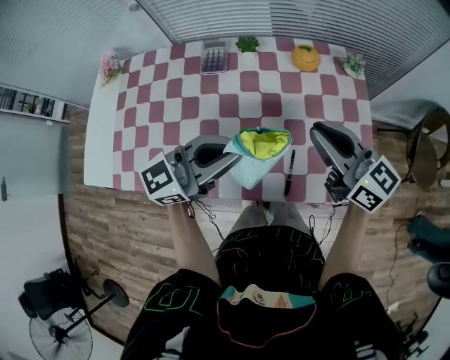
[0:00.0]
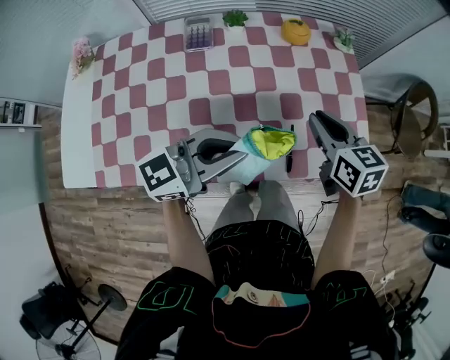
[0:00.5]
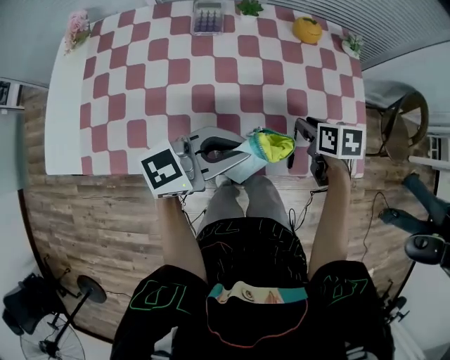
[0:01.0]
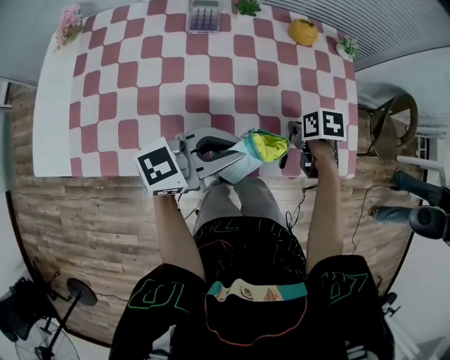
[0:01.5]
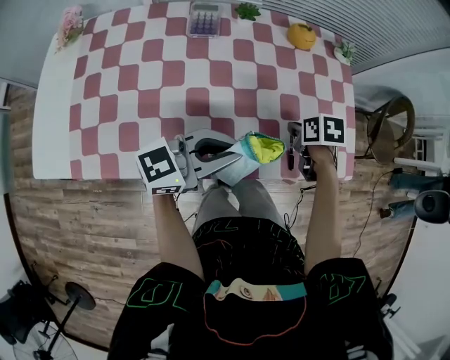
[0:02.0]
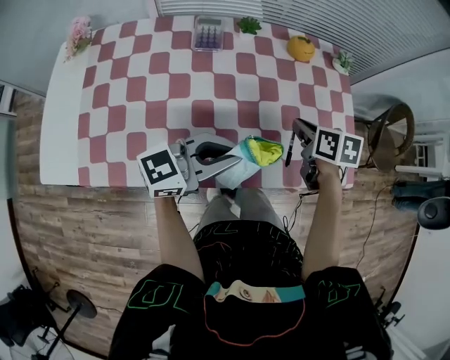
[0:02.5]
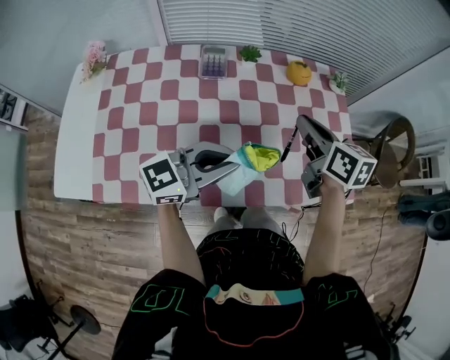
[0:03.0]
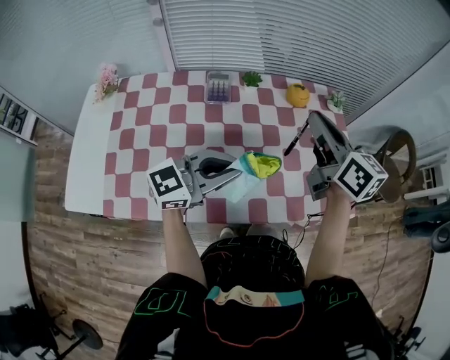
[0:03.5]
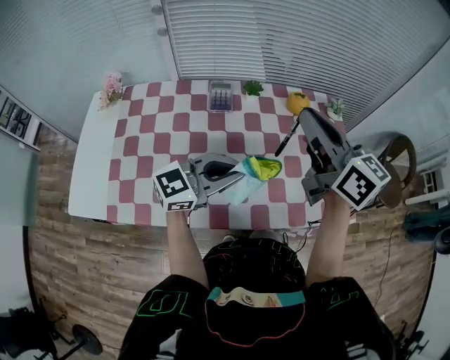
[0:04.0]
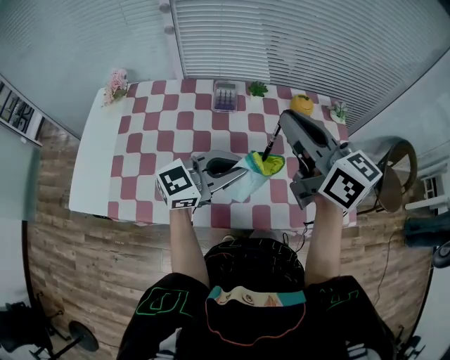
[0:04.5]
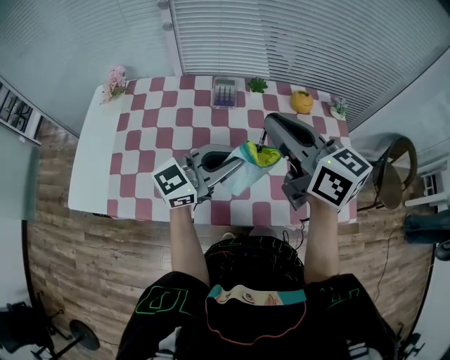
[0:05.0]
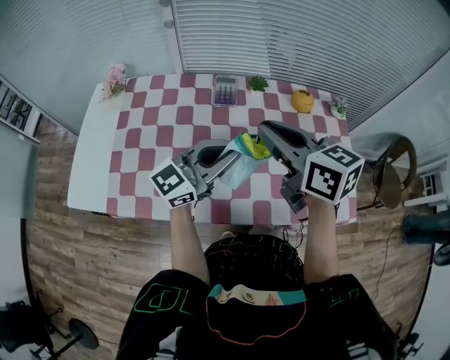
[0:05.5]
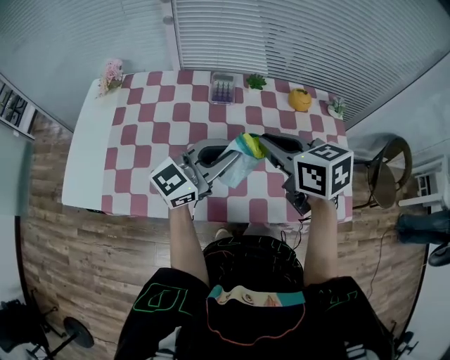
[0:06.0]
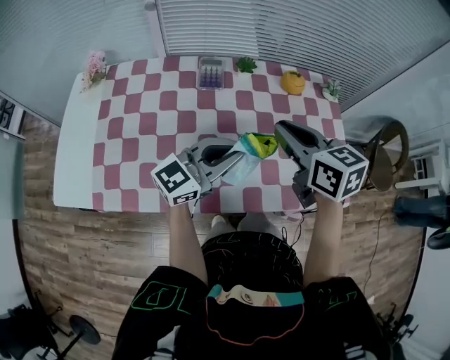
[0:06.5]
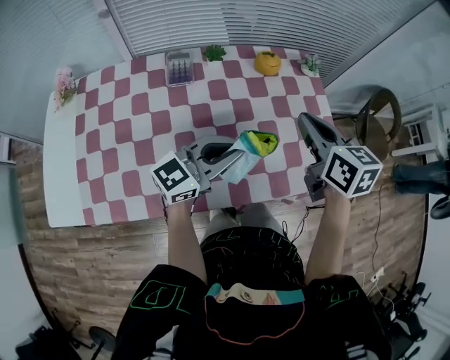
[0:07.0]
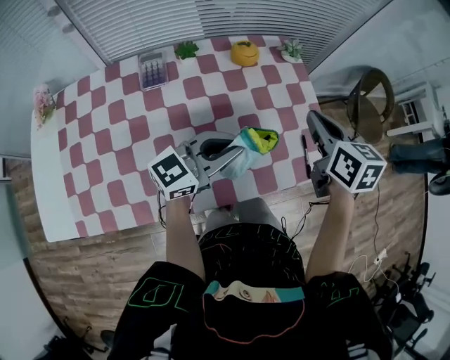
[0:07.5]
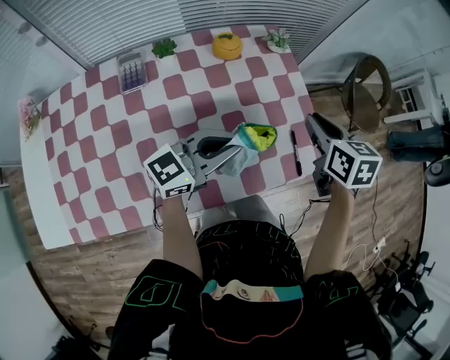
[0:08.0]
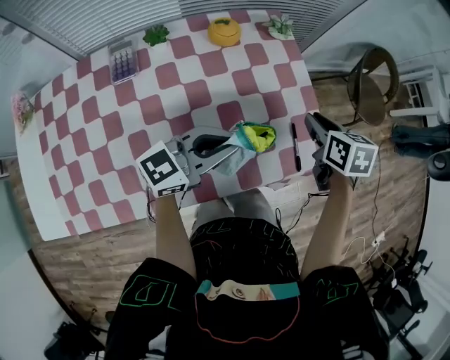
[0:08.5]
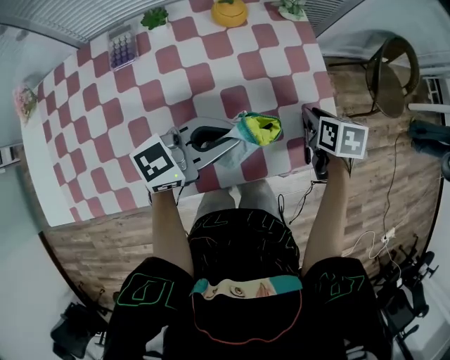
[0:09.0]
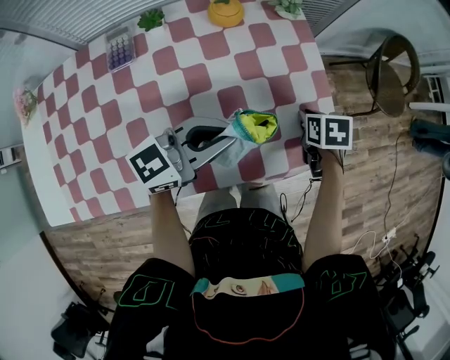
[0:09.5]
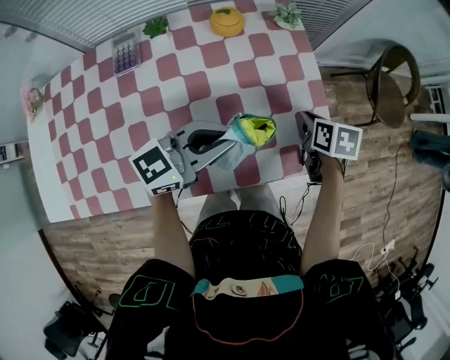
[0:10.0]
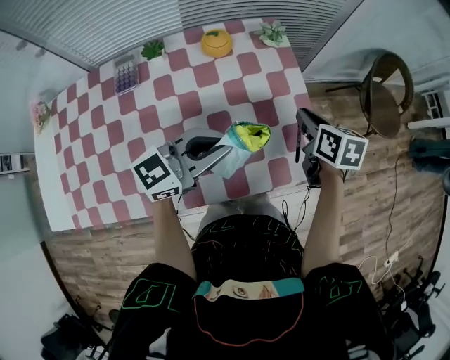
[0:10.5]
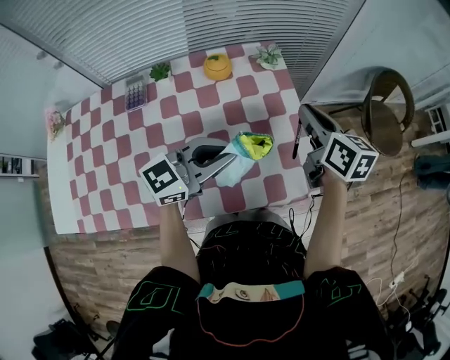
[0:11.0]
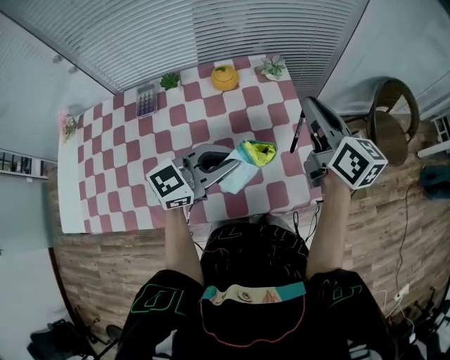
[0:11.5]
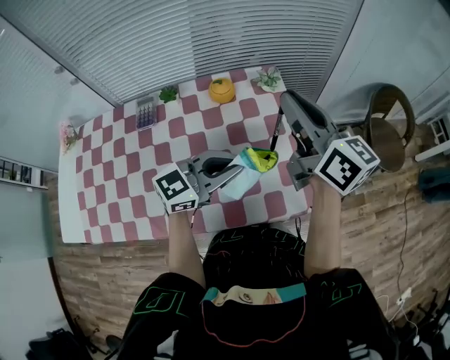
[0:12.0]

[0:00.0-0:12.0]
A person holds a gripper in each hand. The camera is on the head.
0:00.0 to 0:02.0: The left gripper travels downward and backward by some 10 cm; the right gripper goes approximately 25 cm downward, angles its fingers downward, by roughly 70 degrees, and opens, then closes again.
0:02.0 to 0:04.0: The right gripper travels upward by roughly 35 cm, and tilts its fingers approximately 70 degrees upward. The left gripper shifts roughly 5 cm upward.
0:04.0 to 0:06.0: The right gripper goes some 15 cm downward and to the left, and tips its fingers downward by some 30 degrees.
0:06.0 to 0:08.0: The right gripper ends up approximately 35 cm from where it was, and swivels some 40 degrees, while the left gripper changes place by about 20 cm, and changes its angle by about 30 degrees.
0:08.0 to 0:10.0: The right gripper heads downward, covering approximately 15 cm, and swivels roughly 20 degrees.
0:10.0 to 0:12.0: The left gripper shifts about 5 cm to the right. Meanwhile the right gripper shifts roughly 30 cm upward, and tips its fingers upward by about 60 degrees.

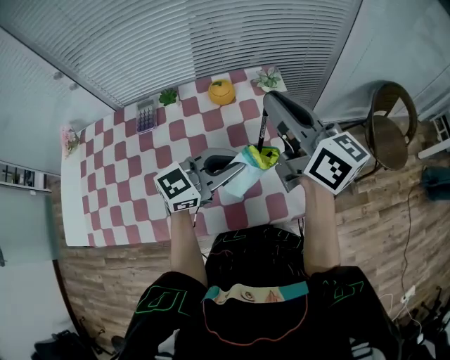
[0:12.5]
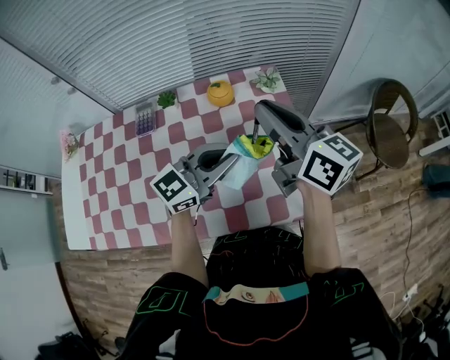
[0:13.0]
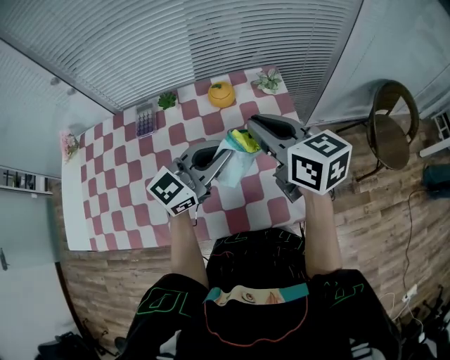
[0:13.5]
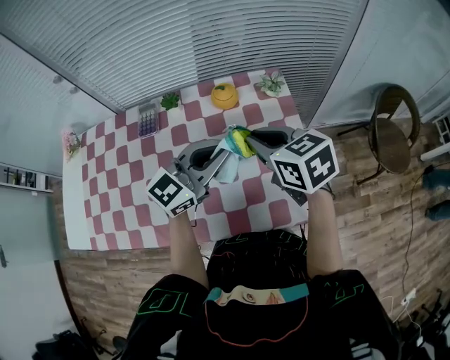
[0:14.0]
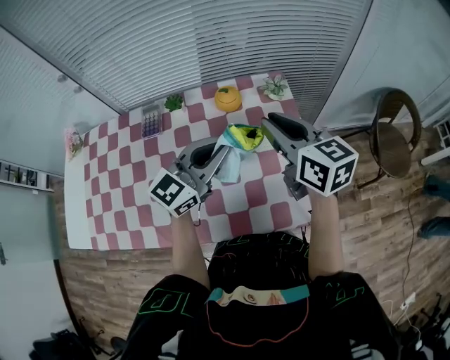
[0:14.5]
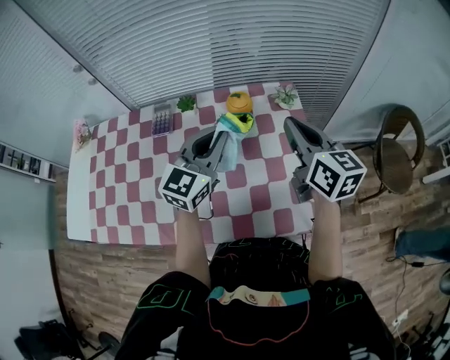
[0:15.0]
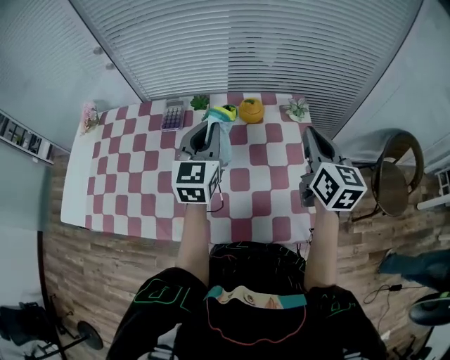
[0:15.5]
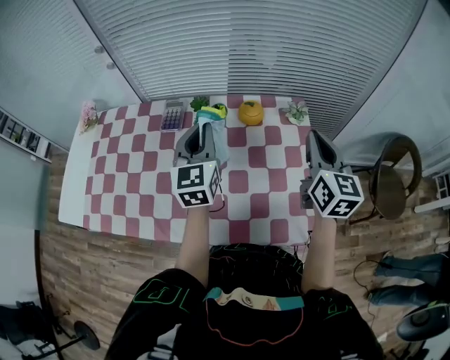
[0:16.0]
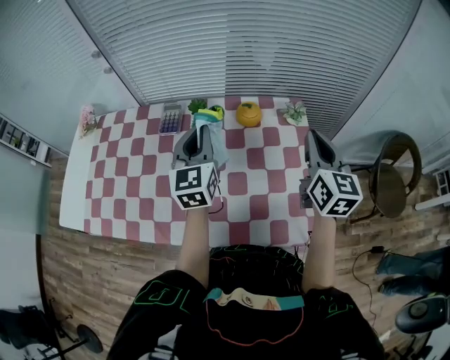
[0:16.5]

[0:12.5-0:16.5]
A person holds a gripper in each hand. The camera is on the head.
0:12.5 to 0:14.5: The right gripper moves downward, approximately 5 cm, and rotates some 20 degrees; the left gripper moves to the left and forward, some 10 cm, and rotates roughly 20 degrees.
0:14.5 to 0:16.5: The right gripper heads to the right, covering approximately 5 cm, and rotates roughly 20 degrees. The left gripper travels to the left and forward by about 15 cm, and rotates roughly 50 degrees.

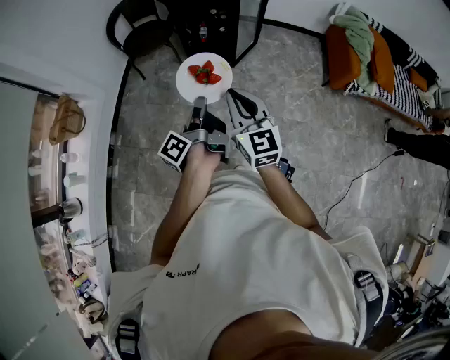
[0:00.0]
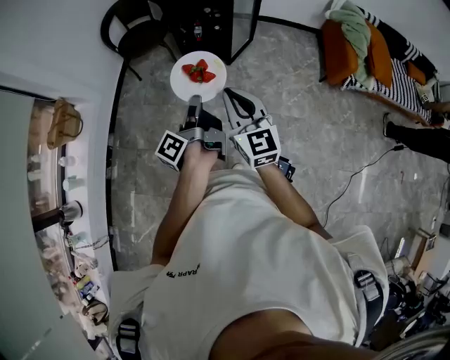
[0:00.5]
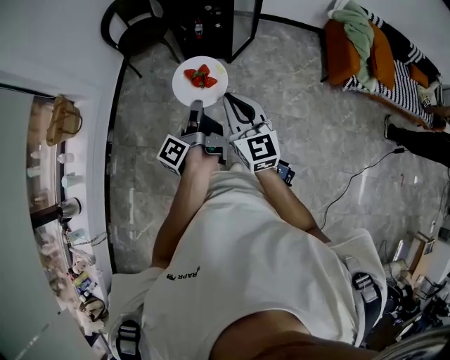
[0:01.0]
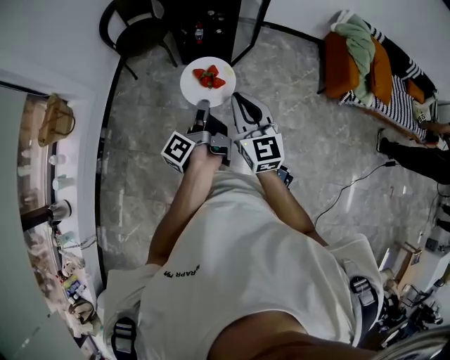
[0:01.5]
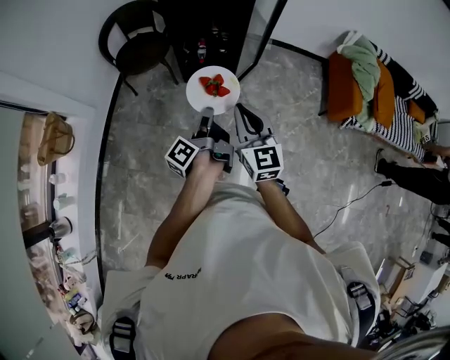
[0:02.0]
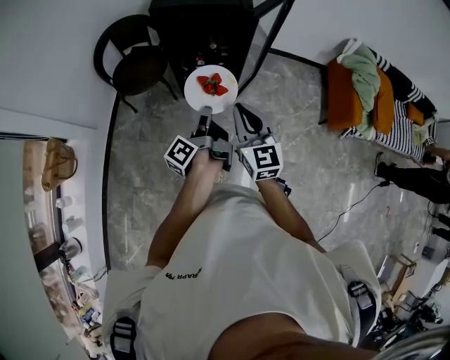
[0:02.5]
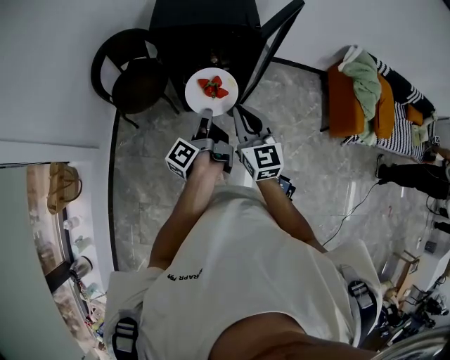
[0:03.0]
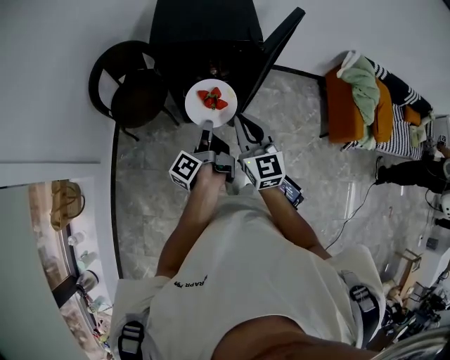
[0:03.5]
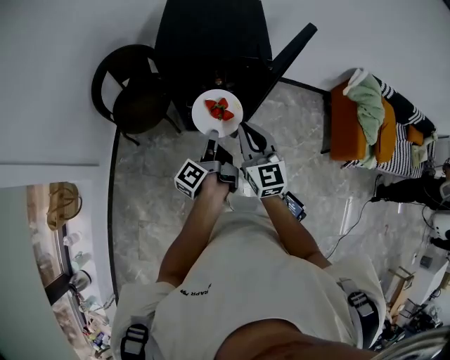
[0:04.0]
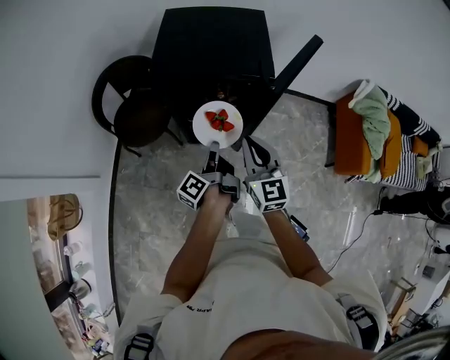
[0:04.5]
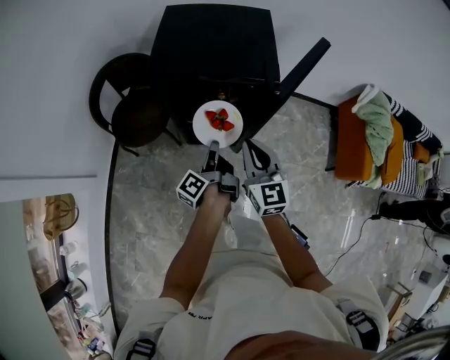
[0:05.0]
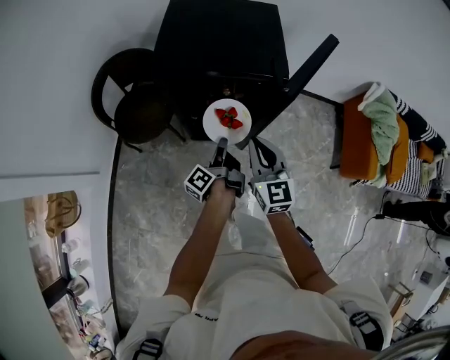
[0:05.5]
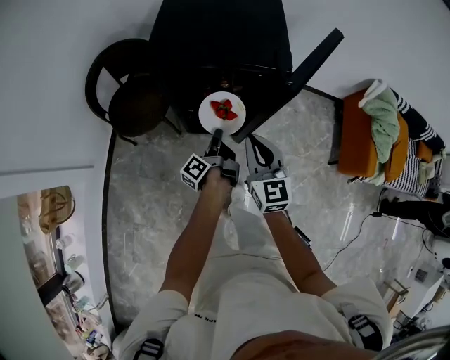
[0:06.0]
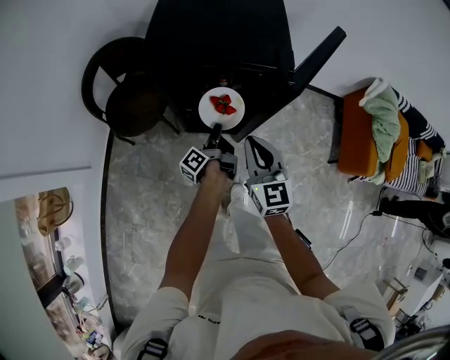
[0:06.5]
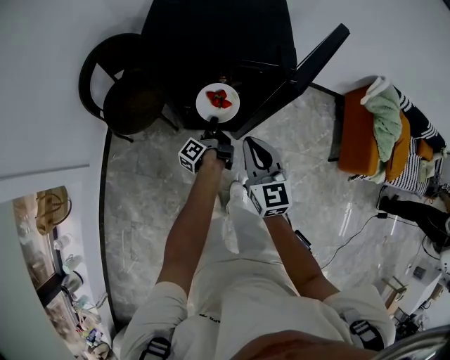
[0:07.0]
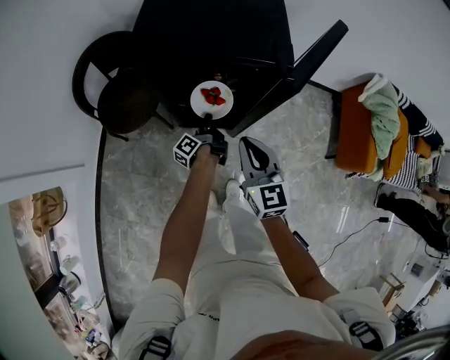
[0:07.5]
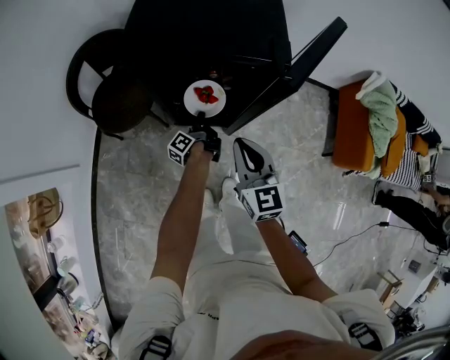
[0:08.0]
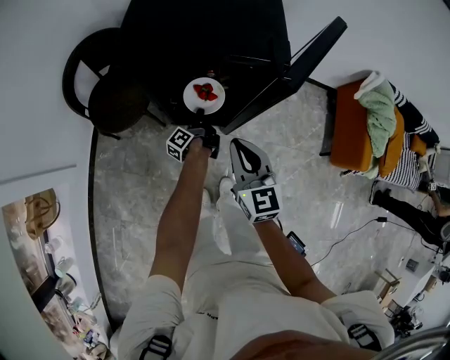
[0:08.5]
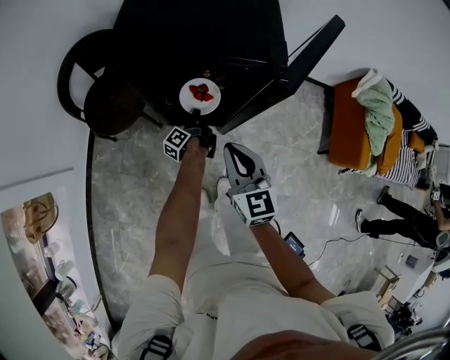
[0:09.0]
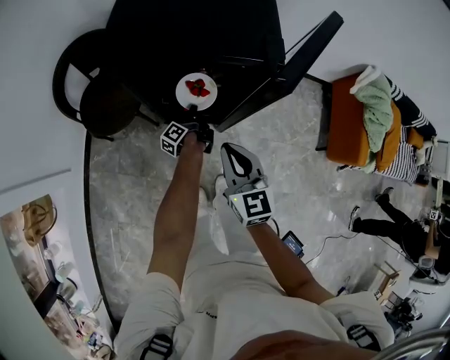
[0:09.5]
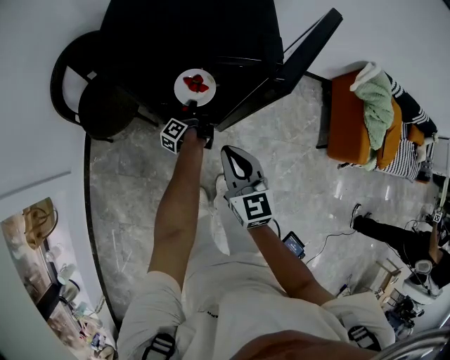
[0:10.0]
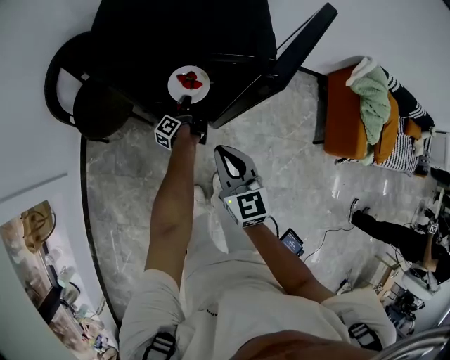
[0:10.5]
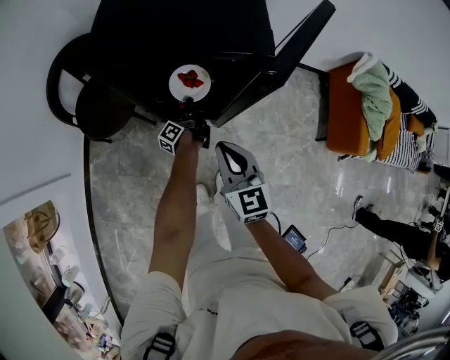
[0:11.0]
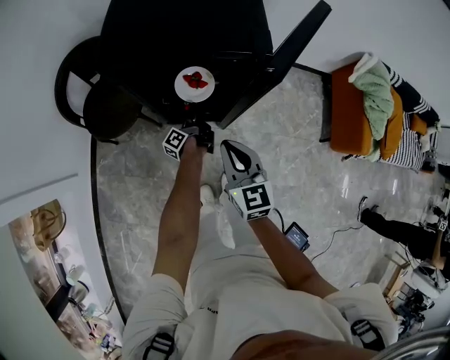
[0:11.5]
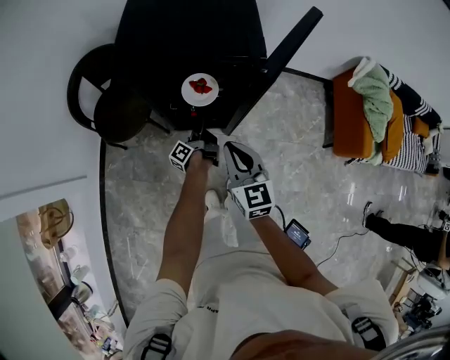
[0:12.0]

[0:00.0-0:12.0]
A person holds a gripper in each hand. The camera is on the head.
0:00.0 to 0:02.0: The right gripper changes place by approximately 20 cm.
0:02.0 to 0:04.0: The right gripper changes place by about 30 cm.
0:04.0 to 0:06.0: The right gripper goes about 10 cm downward.
